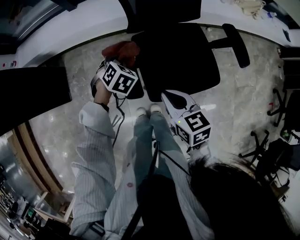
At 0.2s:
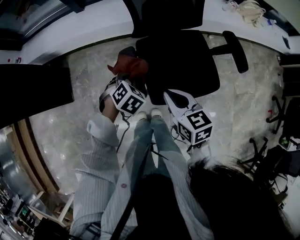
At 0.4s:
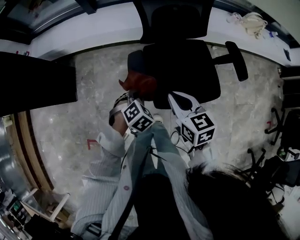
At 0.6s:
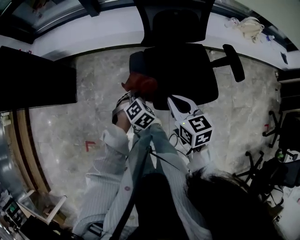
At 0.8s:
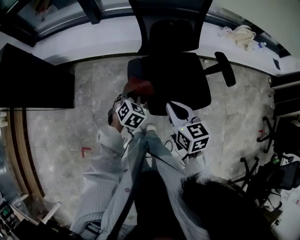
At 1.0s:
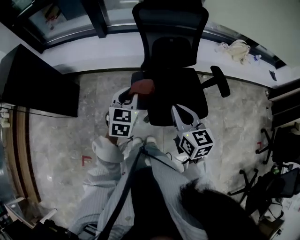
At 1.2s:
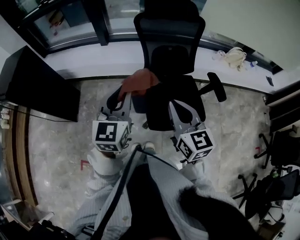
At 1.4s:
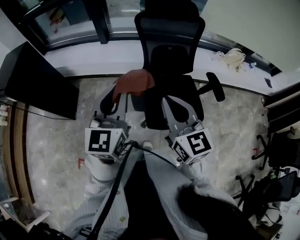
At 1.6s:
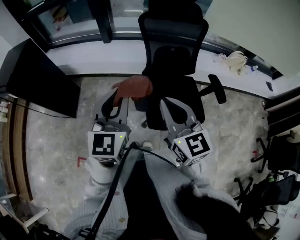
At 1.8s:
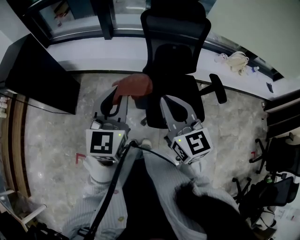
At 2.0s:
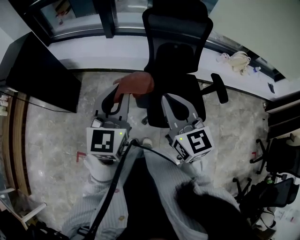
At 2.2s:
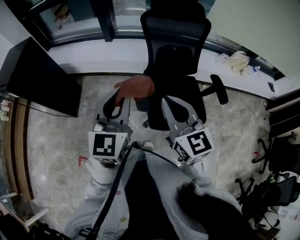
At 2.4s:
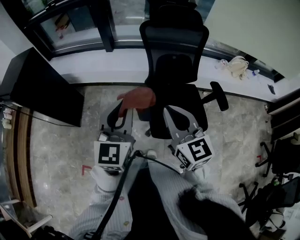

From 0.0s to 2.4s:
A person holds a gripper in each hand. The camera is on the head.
From 0.0s to 1.2s: The left gripper moves upward and backward, roughly 40 cm, and angles its fingers upward, by roughly 60 degrees, while the right gripper is displaced upward by about 25 cm, and changes its angle by approximately 30 degrees.
From 1.2s to 2.4s: The left gripper ends up roughly 5 cm from where it was; the right gripper shifts by some 5 cm.

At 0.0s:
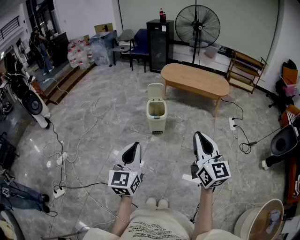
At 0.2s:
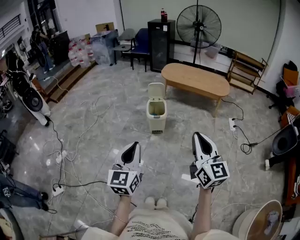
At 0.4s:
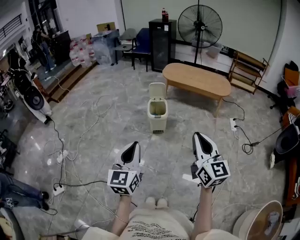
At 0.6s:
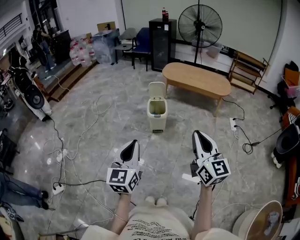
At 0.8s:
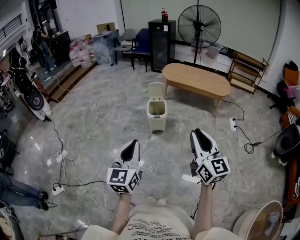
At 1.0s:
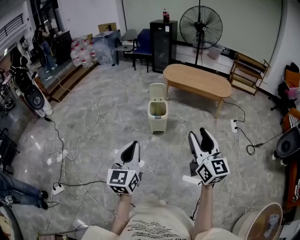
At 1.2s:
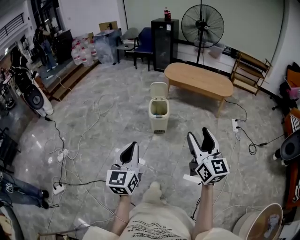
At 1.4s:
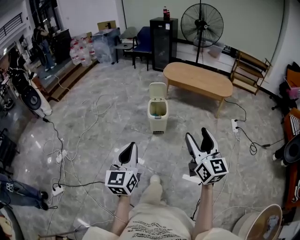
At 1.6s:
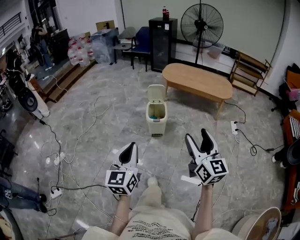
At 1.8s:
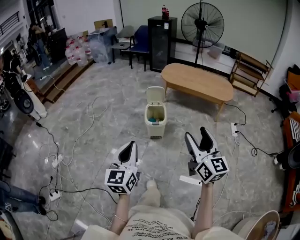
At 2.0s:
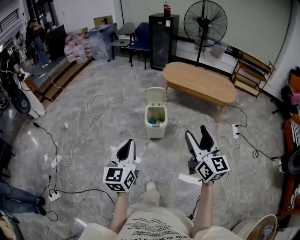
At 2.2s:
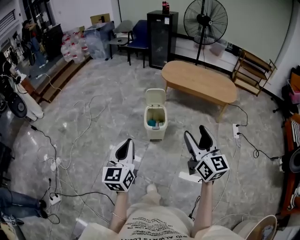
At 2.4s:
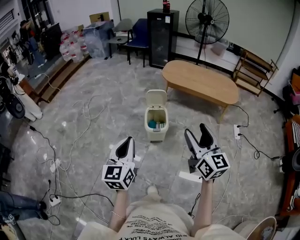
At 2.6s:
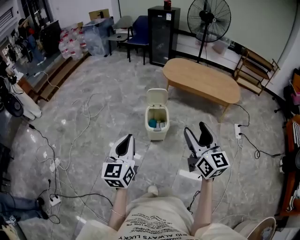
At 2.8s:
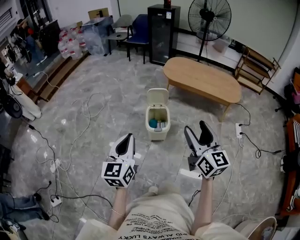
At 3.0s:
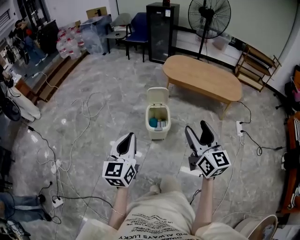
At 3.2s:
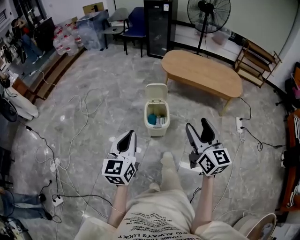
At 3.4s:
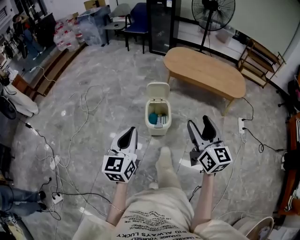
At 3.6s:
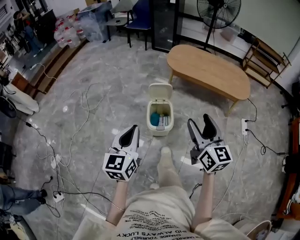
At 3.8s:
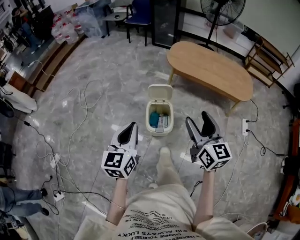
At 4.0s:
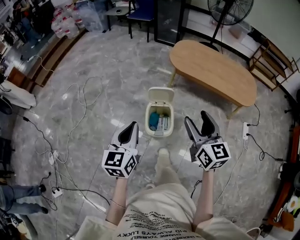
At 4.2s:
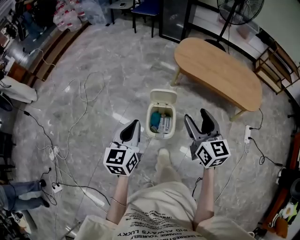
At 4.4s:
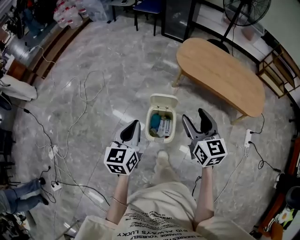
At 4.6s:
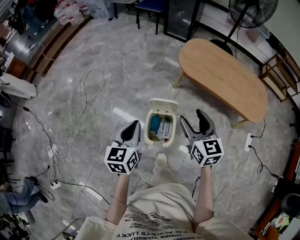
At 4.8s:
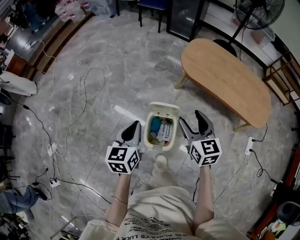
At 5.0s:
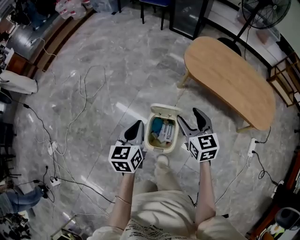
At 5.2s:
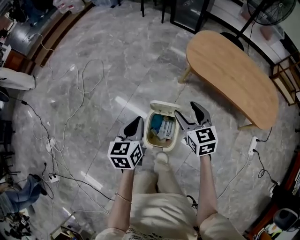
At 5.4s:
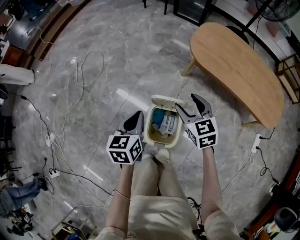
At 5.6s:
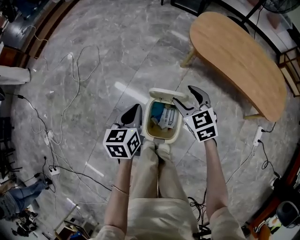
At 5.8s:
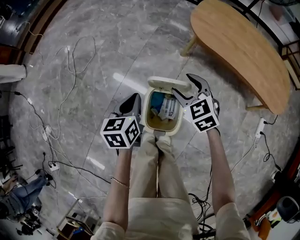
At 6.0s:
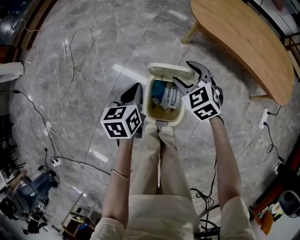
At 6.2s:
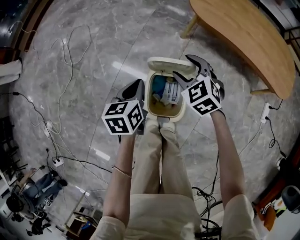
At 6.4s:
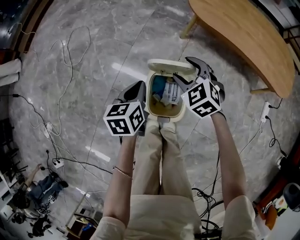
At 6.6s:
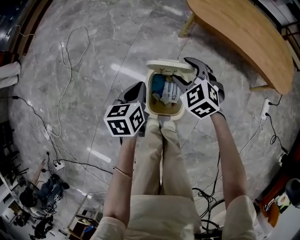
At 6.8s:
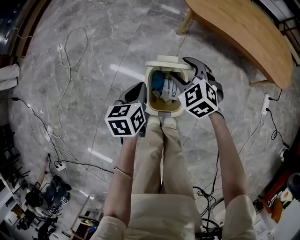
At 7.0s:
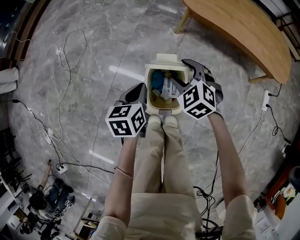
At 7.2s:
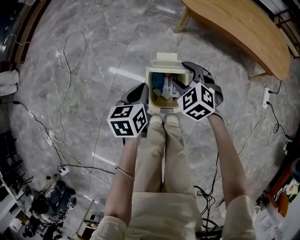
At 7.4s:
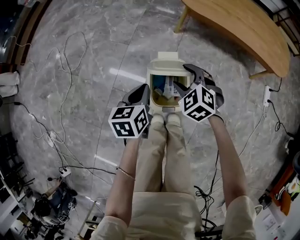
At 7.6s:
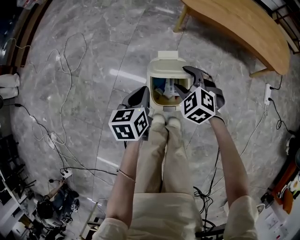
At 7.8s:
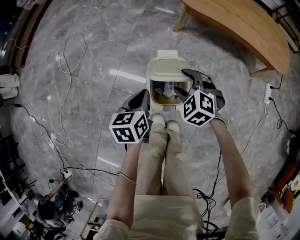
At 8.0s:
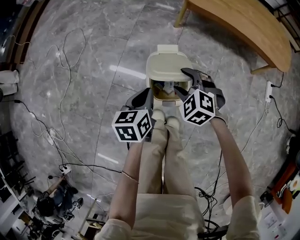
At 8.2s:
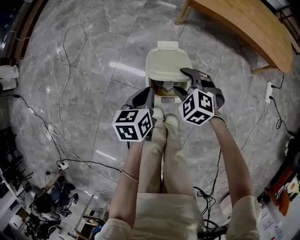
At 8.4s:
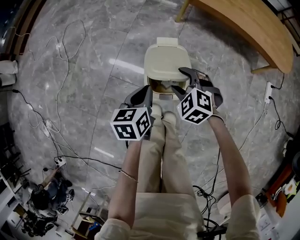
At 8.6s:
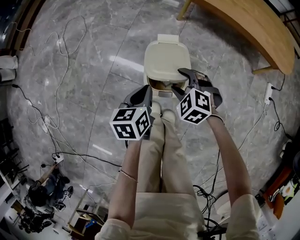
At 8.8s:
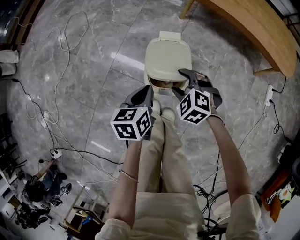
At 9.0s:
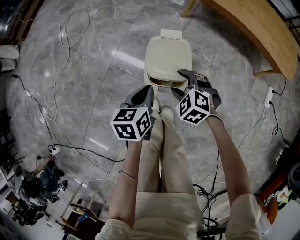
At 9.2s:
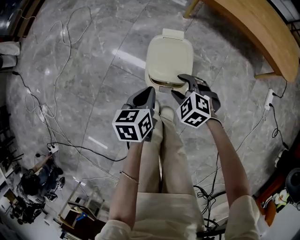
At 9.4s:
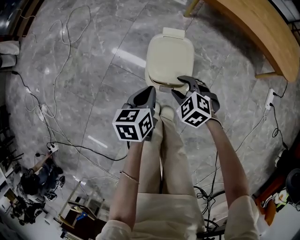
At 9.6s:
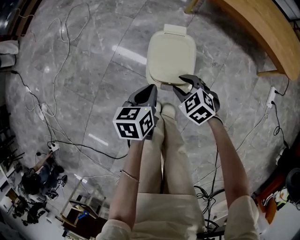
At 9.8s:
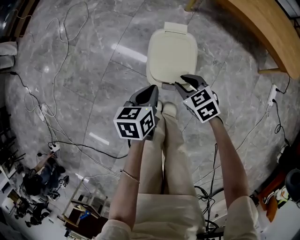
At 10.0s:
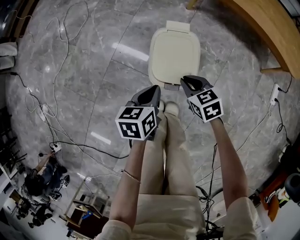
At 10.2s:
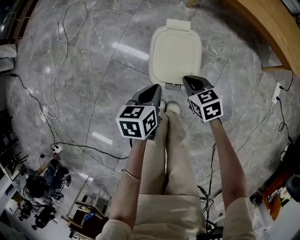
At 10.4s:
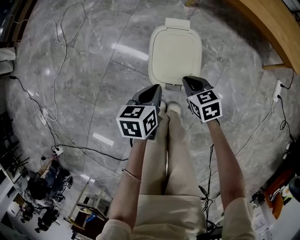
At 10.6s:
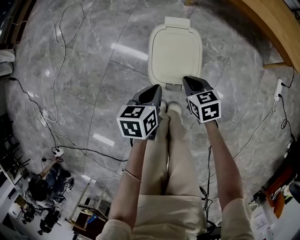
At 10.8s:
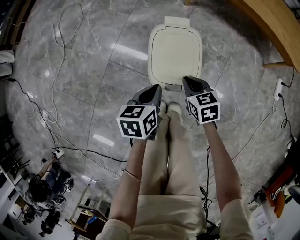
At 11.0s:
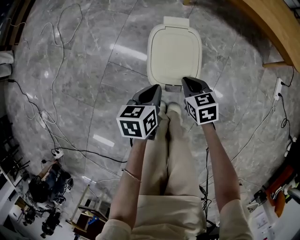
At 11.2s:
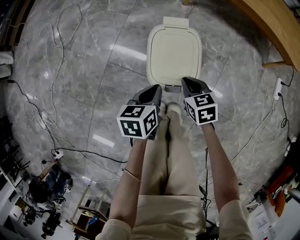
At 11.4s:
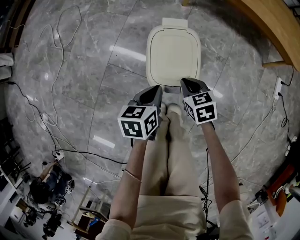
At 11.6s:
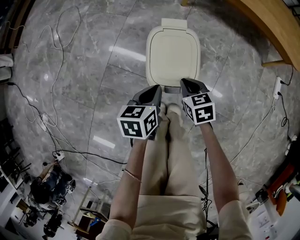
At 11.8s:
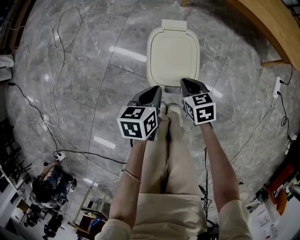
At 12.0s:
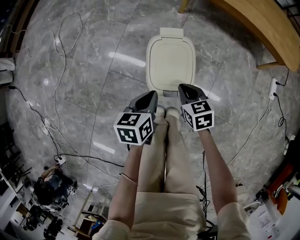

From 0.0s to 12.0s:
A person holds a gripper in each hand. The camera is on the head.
From 0.0s to 1.6s: Both grippers travel together forward, roughly 5 cm. The right gripper opens.
From 1.6s to 3.0s: Both grippers travel together forward, approximately 25 cm.
From 3.0s to 4.4s: The grippers both shift forward by about 30 cm.
From 4.4s to 6.0s: The two grippers go some 30 cm downward and forward. The left gripper rotates about 20 degrees. The right gripper changes its angle by some 50 degrees.
From 6.0s to 7.6s: Both grippers move backward, roughly 10 cm.
From 7.6s to 9.0s: The left gripper shifts roughly 10 cm backward; the right gripper heads backward and downward, covering about 10 cm.
From 9.0s to 10.4s: The two grippers go approximately 5 cm downward. The right gripper rolls clockwise, seen from behind, by roughly 50 degrees, and closes its fingers.
From 10.4s to 12.0s: The grippers make only small movements.

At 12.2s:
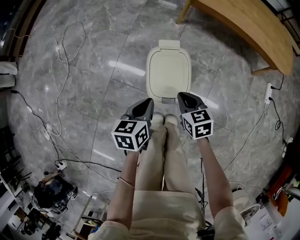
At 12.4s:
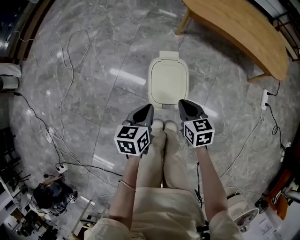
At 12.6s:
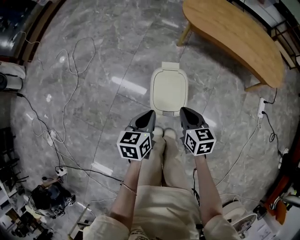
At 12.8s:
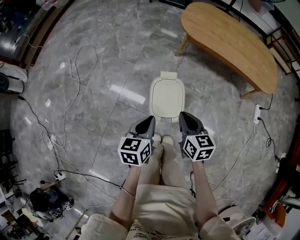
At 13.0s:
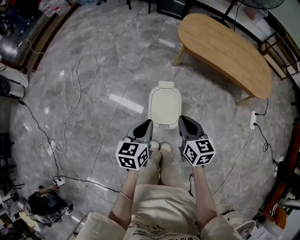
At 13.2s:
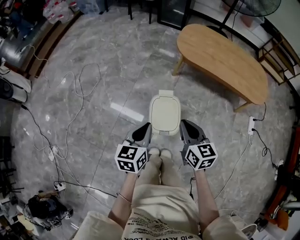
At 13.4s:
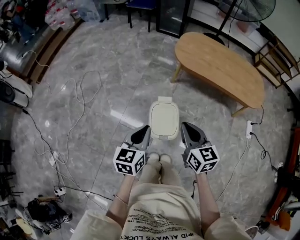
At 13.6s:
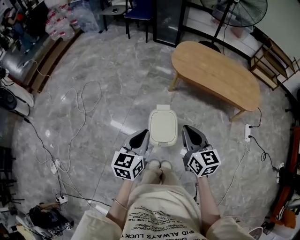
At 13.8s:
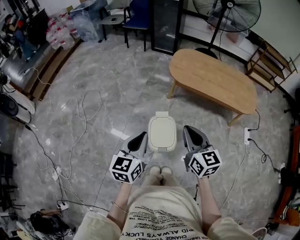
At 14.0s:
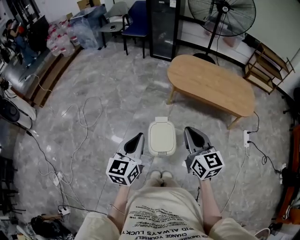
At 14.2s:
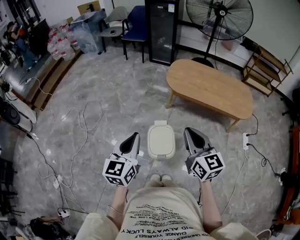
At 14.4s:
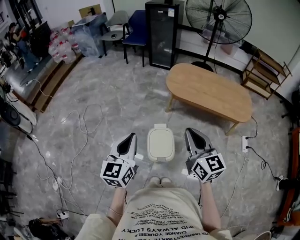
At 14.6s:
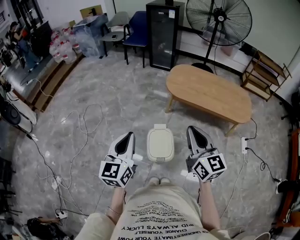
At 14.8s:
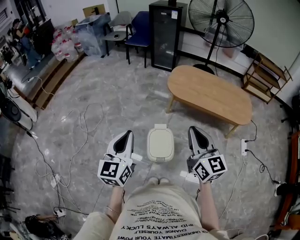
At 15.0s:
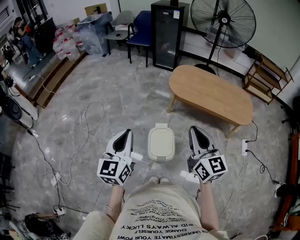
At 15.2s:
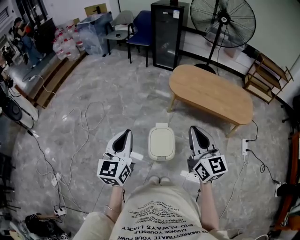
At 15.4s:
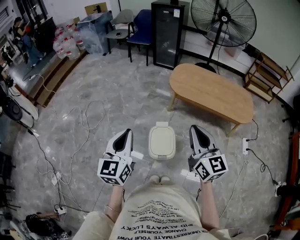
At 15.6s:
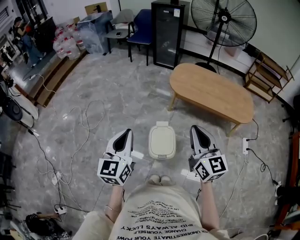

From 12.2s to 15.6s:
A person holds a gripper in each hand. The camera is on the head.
From 12.2s to 13.8s: Both grippers move upward, approximately 35 cm. The right gripper tilts its fingers roughly 30 degrees upward. Meanwhile the left gripper swivels some 30 degrees.
From 13.8s to 15.6s: The left gripper moves upward and to the left, some 10 cm. Meanwhile the right gripper is displaced upward by roughly 10 cm.

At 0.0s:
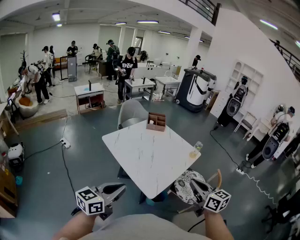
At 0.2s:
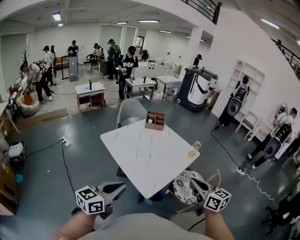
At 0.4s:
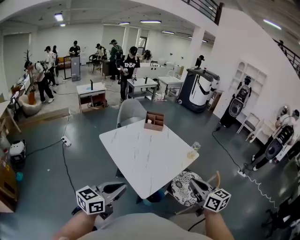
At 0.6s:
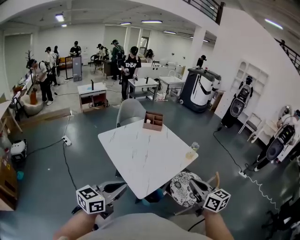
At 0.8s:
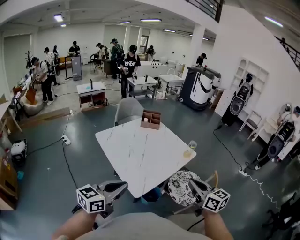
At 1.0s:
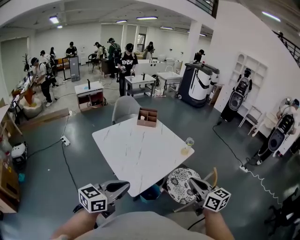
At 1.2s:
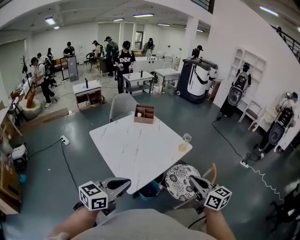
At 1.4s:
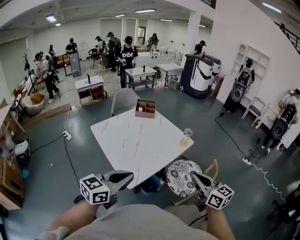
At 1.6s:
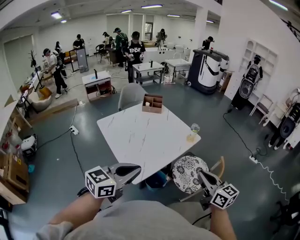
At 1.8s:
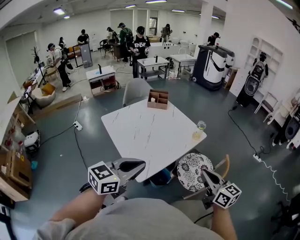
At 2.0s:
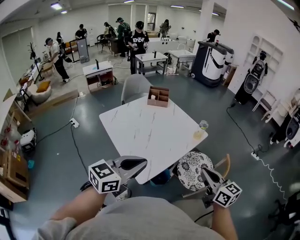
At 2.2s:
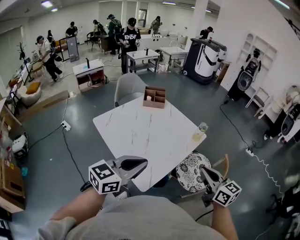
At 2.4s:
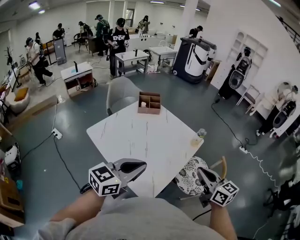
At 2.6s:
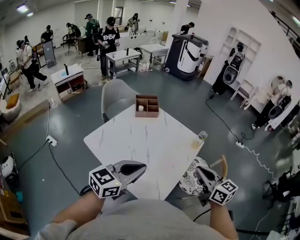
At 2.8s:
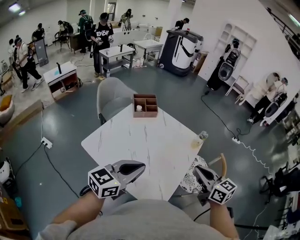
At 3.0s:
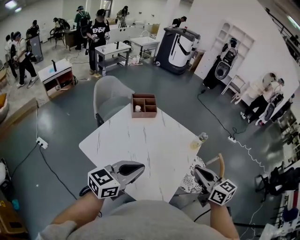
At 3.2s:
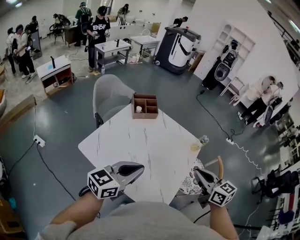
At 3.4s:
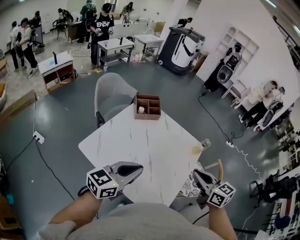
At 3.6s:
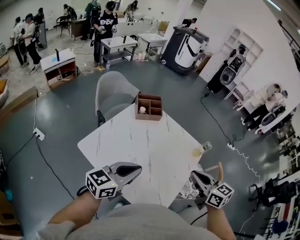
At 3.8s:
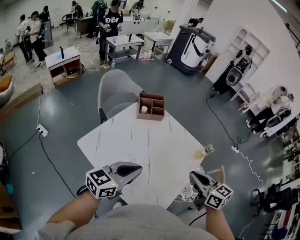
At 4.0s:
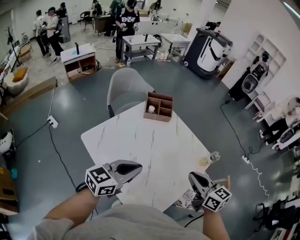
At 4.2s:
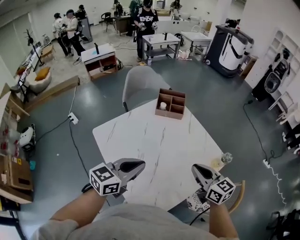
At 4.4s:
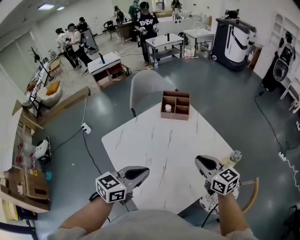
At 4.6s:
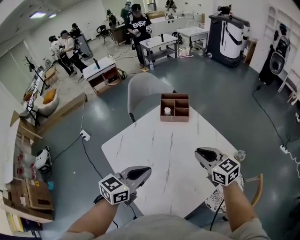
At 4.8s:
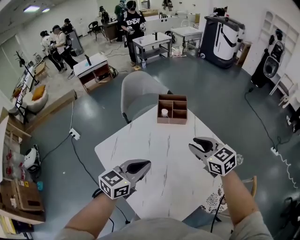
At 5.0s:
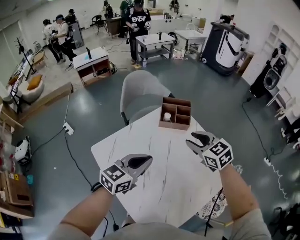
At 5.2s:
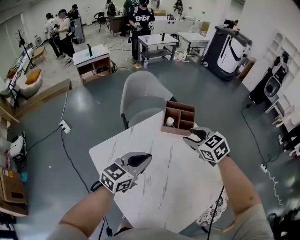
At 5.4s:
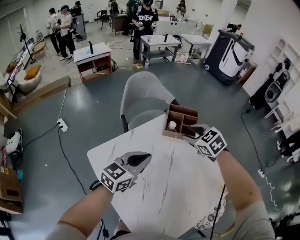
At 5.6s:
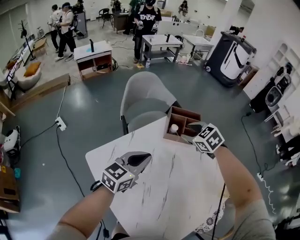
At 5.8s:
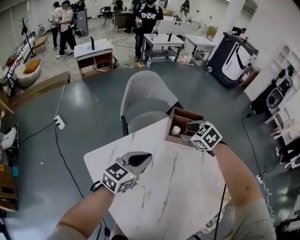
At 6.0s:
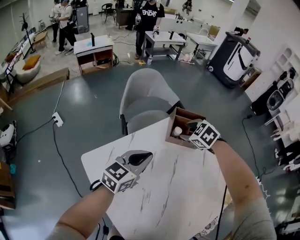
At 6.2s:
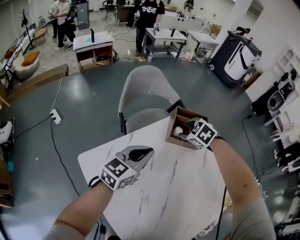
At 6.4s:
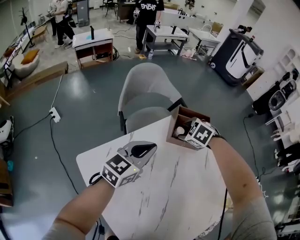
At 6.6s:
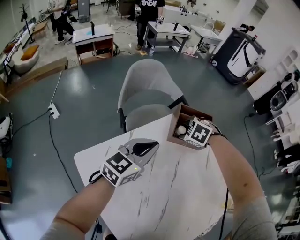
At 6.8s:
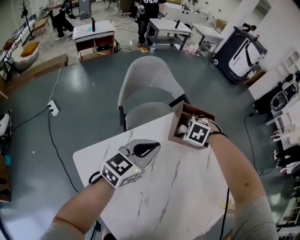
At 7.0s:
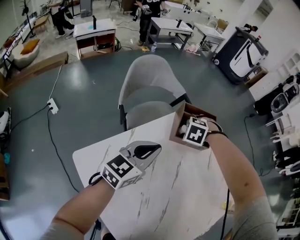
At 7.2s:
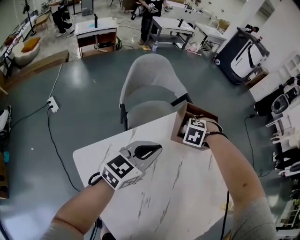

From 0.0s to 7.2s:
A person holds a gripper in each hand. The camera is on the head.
From 0.0s to 1.4s: The two grippers go roughly 20 cm to the right.
From 1.4s to 2.8s: The left gripper travels forward and to the left by some 30 cm, while the right gripper moves to the left and forward, roughly 25 cm.
From 2.8s to 4.4s: The right gripper ends up approximately 25 cm from where it was, and swivels approximately 30 degrees; the left gripper changes place by some 15 cm, and changes its angle by roughly 30 degrees.
From 4.4s to 5.8s: Both grippers travel together forward and to the left, approximately 30 cm. The right gripper points its fingers some 40 degrees further downward, and opens up.
From 5.8s to 7.2s: The left gripper shifts by roughly 5 cm. The right gripper shifts some 15 cm downward, and rotates roughly 40 degrees.
